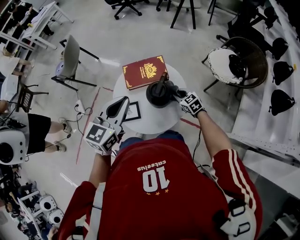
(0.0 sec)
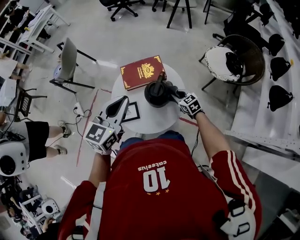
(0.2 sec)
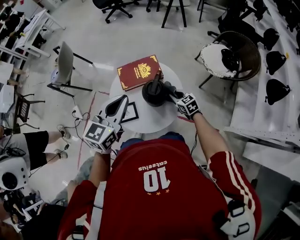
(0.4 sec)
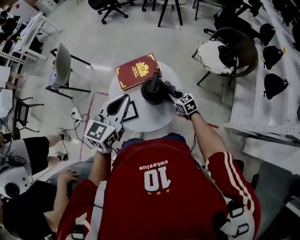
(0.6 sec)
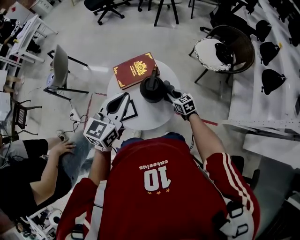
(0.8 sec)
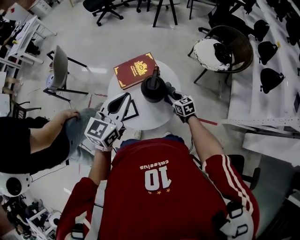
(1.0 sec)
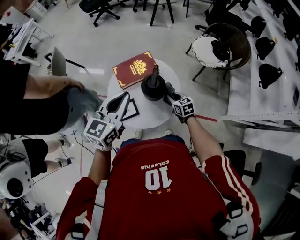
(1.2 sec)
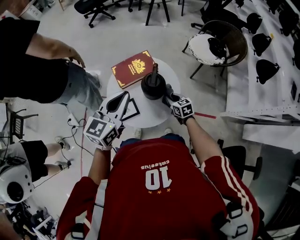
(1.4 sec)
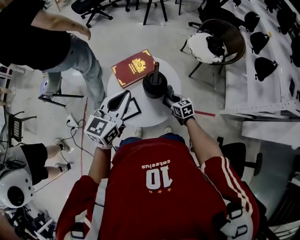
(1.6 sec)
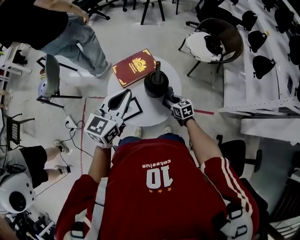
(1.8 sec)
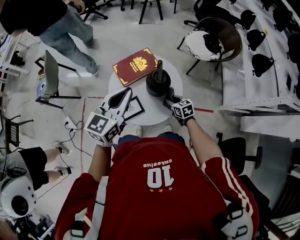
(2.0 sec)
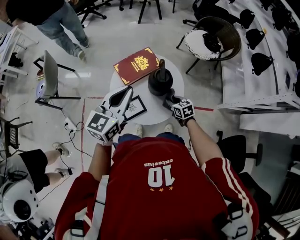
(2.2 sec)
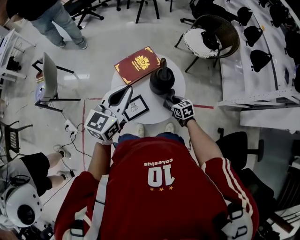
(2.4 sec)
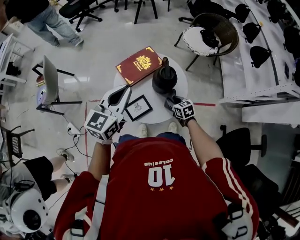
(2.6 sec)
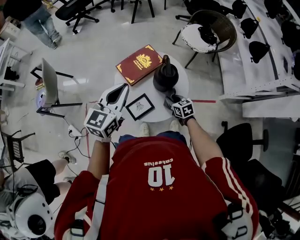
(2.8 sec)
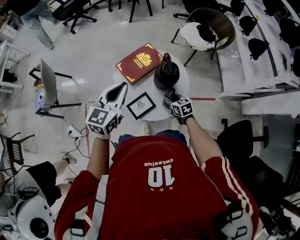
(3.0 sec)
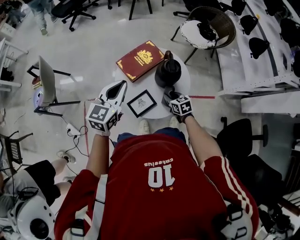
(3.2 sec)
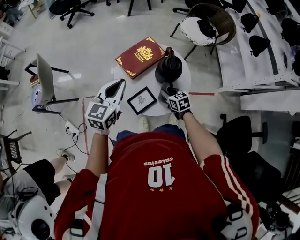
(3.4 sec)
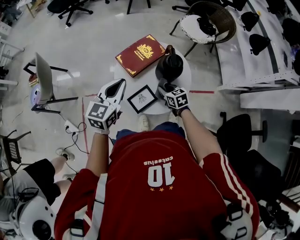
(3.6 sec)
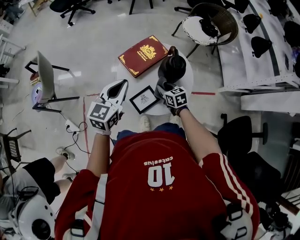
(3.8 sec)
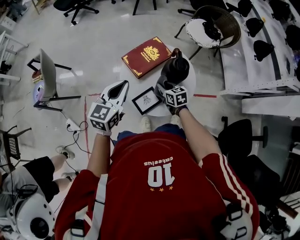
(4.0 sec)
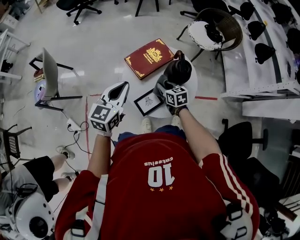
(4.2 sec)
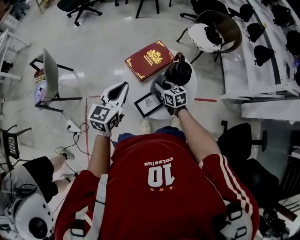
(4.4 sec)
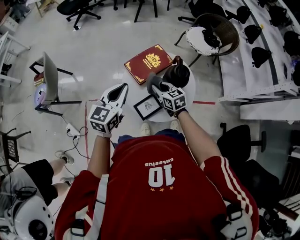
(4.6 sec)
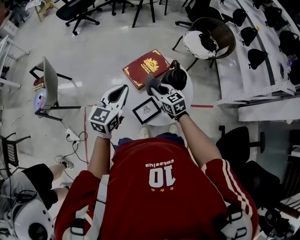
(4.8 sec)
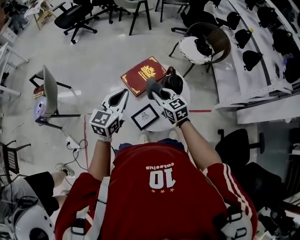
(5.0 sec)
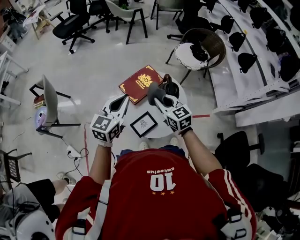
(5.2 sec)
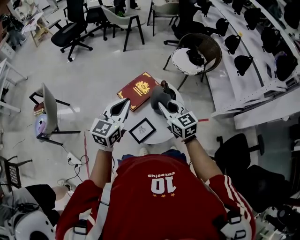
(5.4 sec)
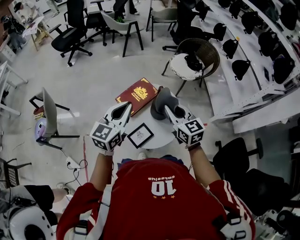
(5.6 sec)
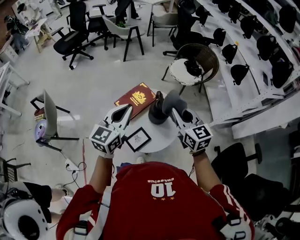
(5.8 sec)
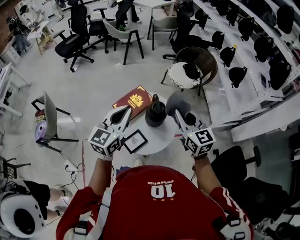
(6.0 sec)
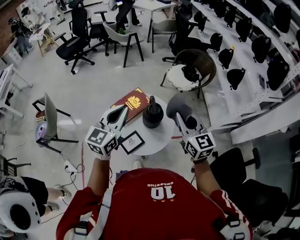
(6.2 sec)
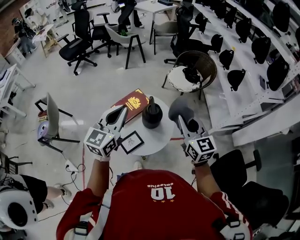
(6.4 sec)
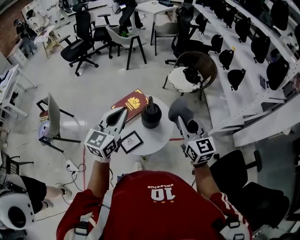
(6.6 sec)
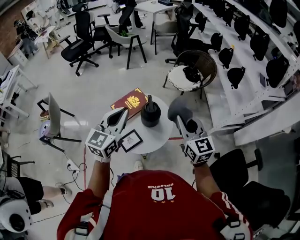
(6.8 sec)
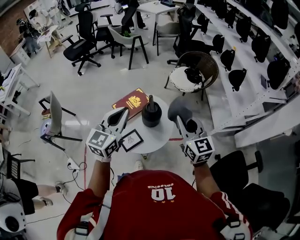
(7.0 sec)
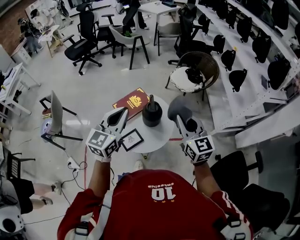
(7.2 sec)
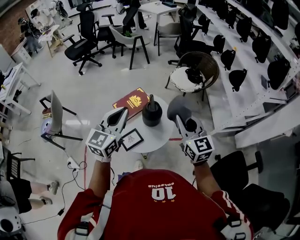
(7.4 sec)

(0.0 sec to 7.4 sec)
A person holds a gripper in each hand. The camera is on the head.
0.0 sec - 1.4 sec: The right gripper is displaced backward by some 10 cm, and rotates approximately 30 degrees.
1.4 sec - 3.0 sec: The left gripper shifts some 15 cm to the left; the right gripper travels to the left and backward by about 10 cm.
3.0 sec - 4.4 sec: The left gripper goes roughly 5 cm to the left, while the right gripper travels to the left, forward and upward by roughly 15 cm.
4.4 sec - 6.0 sec: The right gripper heads upward and to the right, covering approximately 35 cm, and swivels approximately 30 degrees. The left gripper moves upward and to the right, approximately 20 cm.
6.0 sec - 7.4 sec: The right gripper travels to the right by some 5 cm, while the left gripper changes place by some 5 cm.

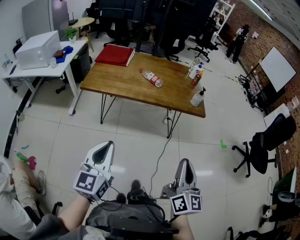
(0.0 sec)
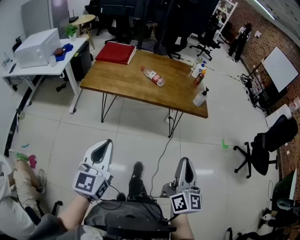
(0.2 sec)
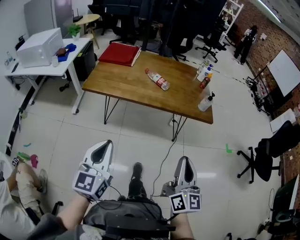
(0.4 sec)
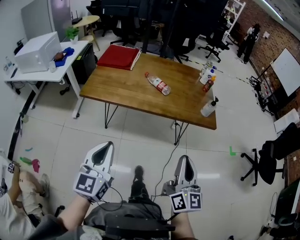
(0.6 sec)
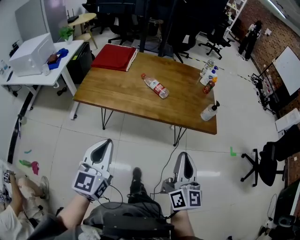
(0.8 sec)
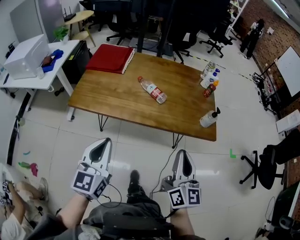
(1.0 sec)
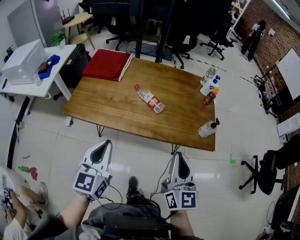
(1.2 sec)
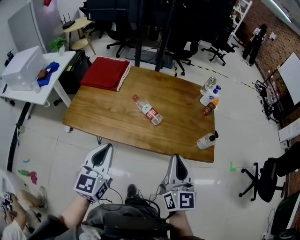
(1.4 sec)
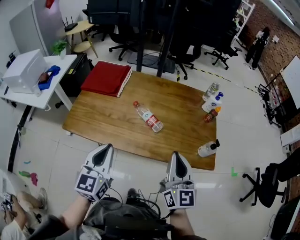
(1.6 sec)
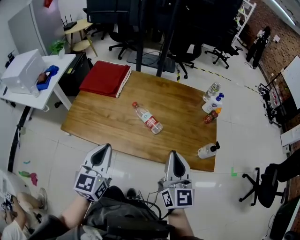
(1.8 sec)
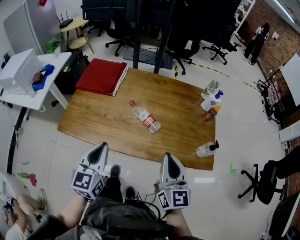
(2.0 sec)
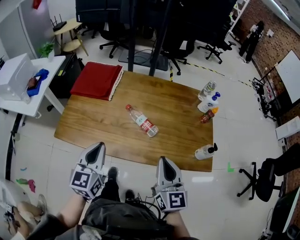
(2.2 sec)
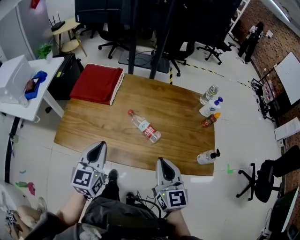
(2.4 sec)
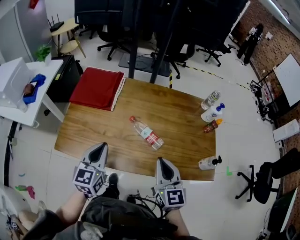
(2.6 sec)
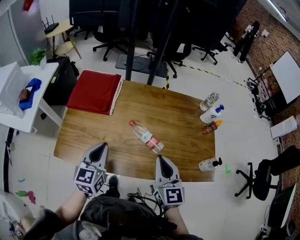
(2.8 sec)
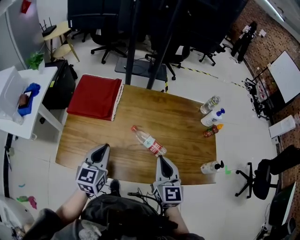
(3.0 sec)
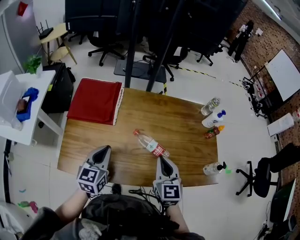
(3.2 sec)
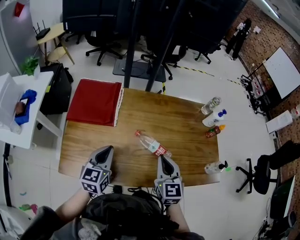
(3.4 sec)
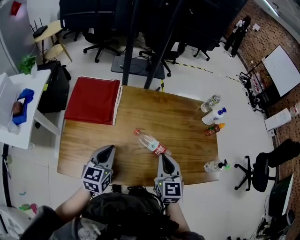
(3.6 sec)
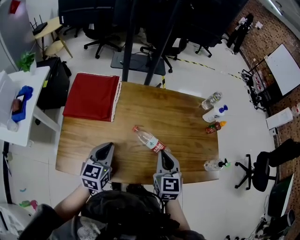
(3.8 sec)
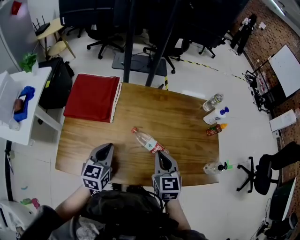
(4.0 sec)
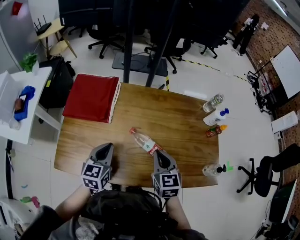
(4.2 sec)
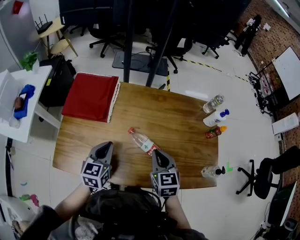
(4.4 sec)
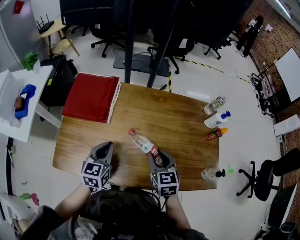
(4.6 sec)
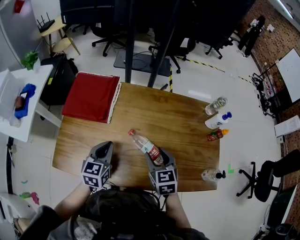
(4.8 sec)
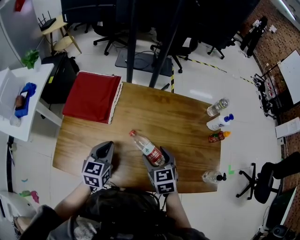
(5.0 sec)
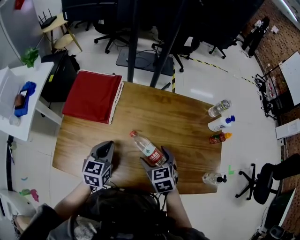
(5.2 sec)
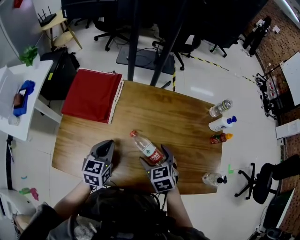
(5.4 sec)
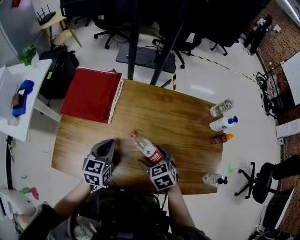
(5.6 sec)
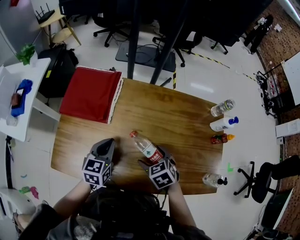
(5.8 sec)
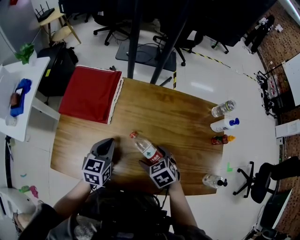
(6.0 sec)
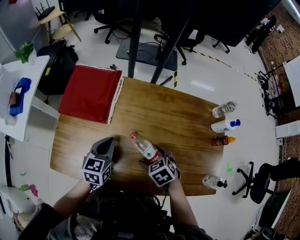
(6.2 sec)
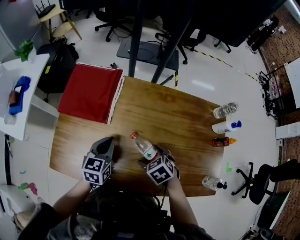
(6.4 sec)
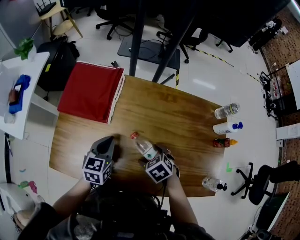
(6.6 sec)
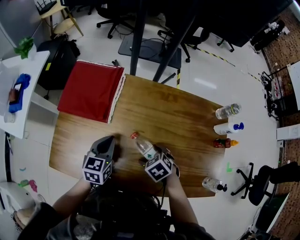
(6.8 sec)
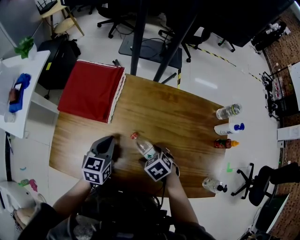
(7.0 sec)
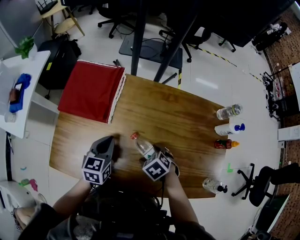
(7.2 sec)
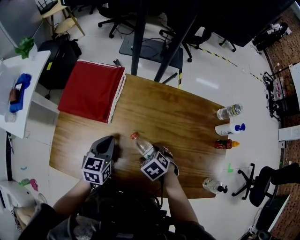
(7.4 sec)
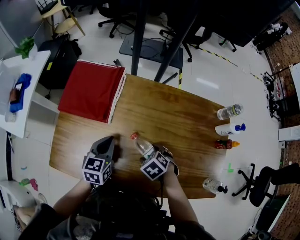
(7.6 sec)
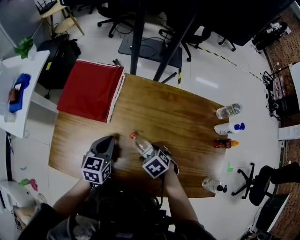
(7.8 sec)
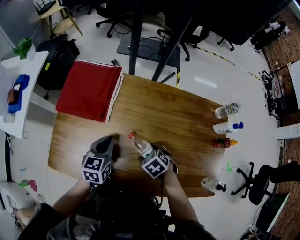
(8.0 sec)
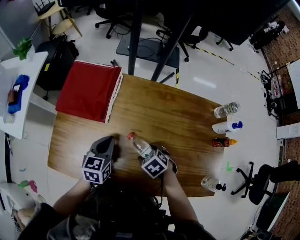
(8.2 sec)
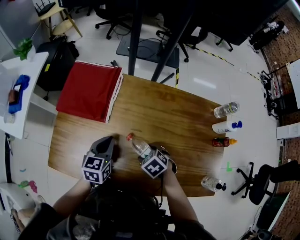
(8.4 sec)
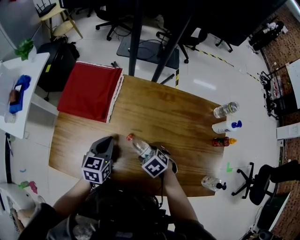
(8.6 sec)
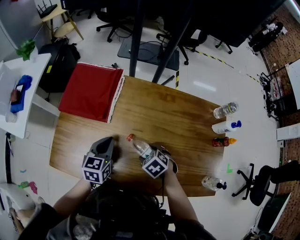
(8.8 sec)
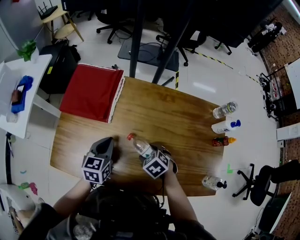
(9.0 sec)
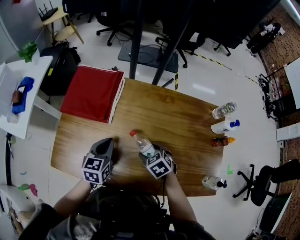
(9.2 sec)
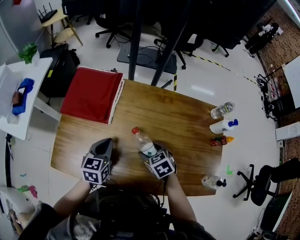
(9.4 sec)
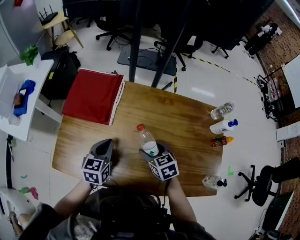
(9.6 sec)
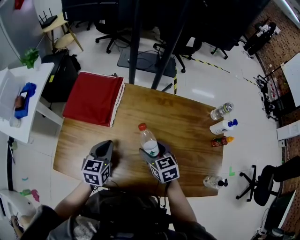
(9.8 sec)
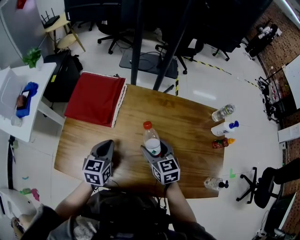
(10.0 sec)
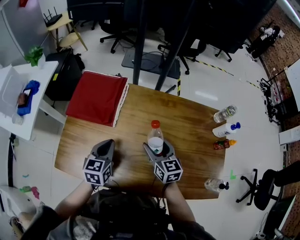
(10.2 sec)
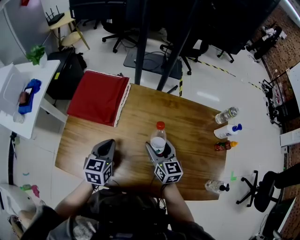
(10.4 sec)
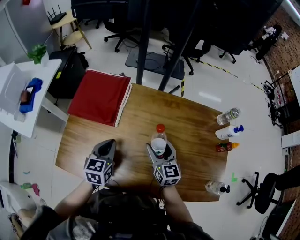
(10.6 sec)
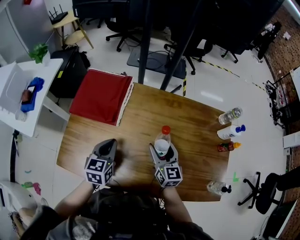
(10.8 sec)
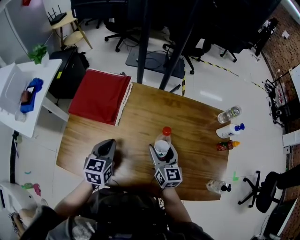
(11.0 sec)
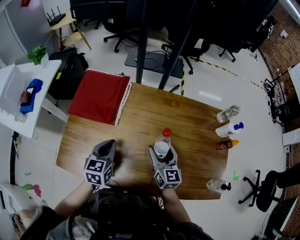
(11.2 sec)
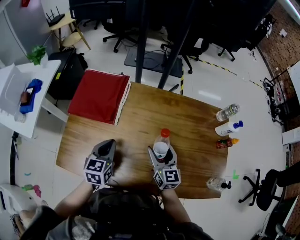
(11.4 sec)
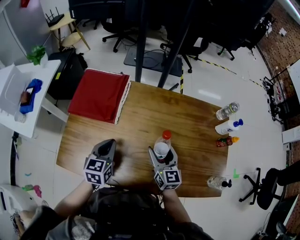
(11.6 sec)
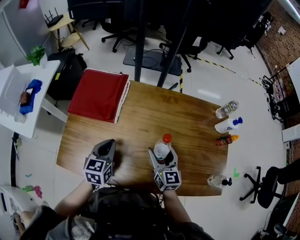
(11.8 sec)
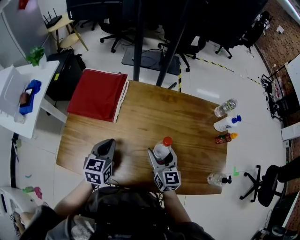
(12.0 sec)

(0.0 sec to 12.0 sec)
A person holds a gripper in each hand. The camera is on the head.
0.0 sec - 1.6 sec: The two grippers travel together, forward, about 50 cm.
1.6 sec - 3.0 sec: The two grippers go roughly 25 cm forward and to the left.
3.0 sec - 4.4 sec: Both grippers move forward and downward, approximately 10 cm.
4.4 sec - 6.0 sec: The left gripper heads forward, covering roughly 10 cm, while the right gripper shifts approximately 15 cm downward and forward, tilts its fingers approximately 30 degrees downward, and opens up.
6.0 sec - 7.6 sec: The right gripper moves downward, some 5 cm.
7.6 sec - 9.0 sec: The grippers stay close to where they were, moving slightly.
9.0 sec - 10.4 sec: The right gripper shifts roughly 10 cm upward and forward, and angles its fingers upward, by about 50 degrees.
10.4 sec - 12.0 sec: The right gripper is displaced backward by some 5 cm.

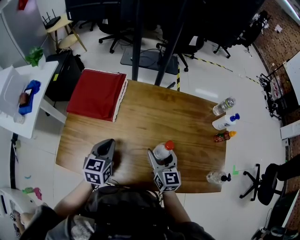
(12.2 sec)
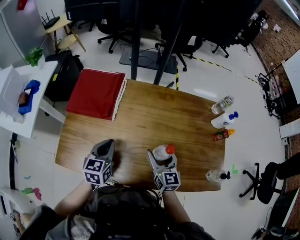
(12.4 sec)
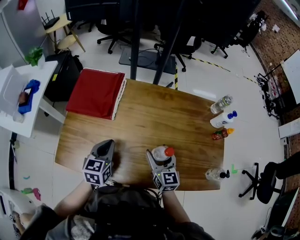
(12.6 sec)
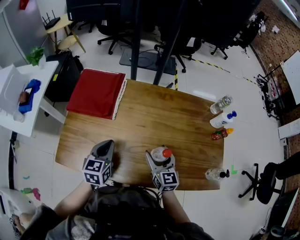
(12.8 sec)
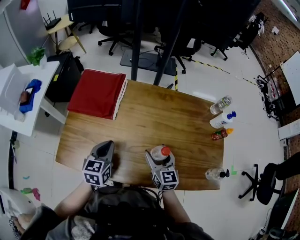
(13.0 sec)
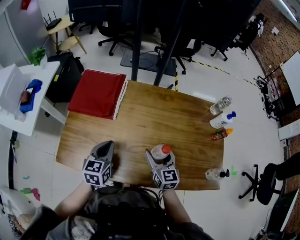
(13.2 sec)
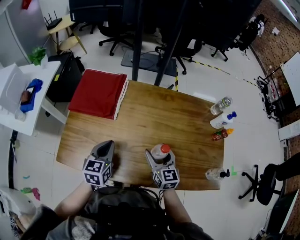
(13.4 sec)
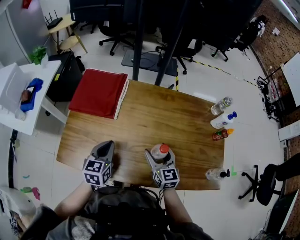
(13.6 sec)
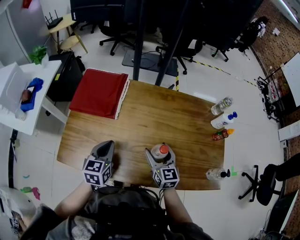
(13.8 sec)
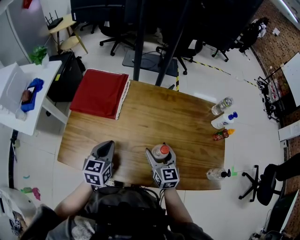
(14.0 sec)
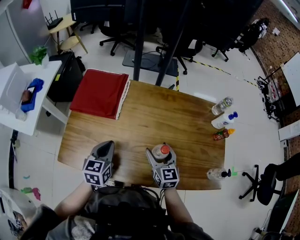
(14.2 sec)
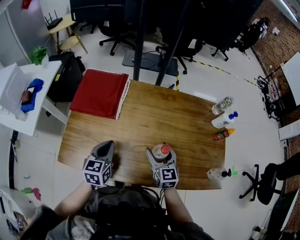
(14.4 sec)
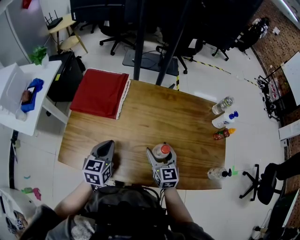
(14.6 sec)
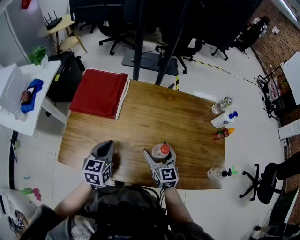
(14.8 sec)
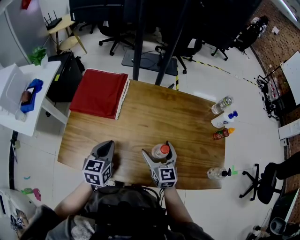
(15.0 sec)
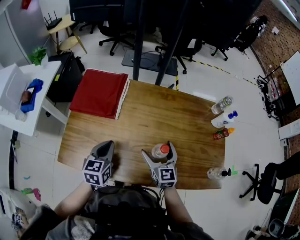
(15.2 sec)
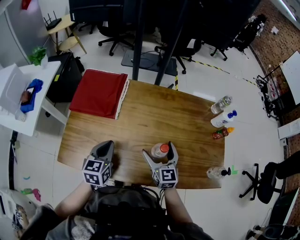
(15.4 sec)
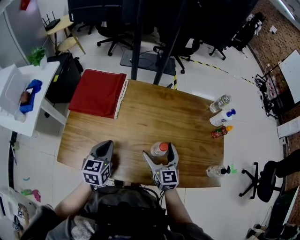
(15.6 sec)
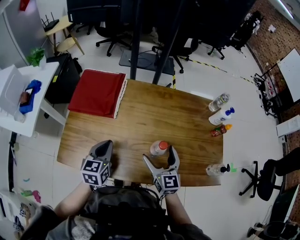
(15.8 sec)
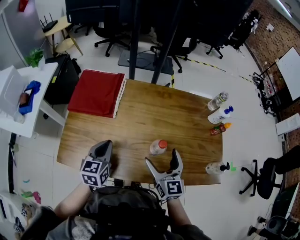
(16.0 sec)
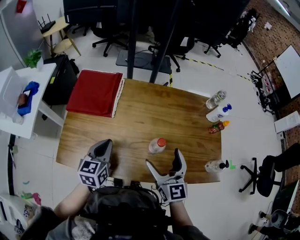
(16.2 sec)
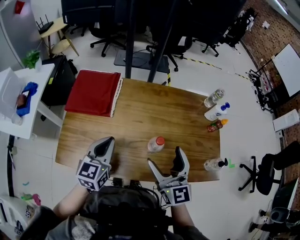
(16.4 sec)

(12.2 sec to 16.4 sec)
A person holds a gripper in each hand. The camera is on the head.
12.2 sec - 15.0 sec: The grippers make only small movements.
15.0 sec - 16.4 sec: The left gripper heads upward, covering about 10 cm, while the right gripper goes approximately 20 cm upward and backward.
